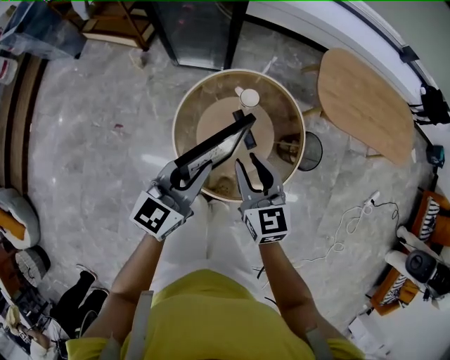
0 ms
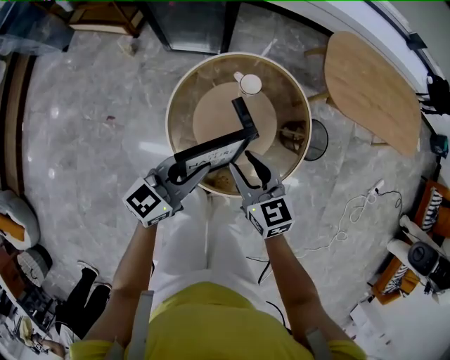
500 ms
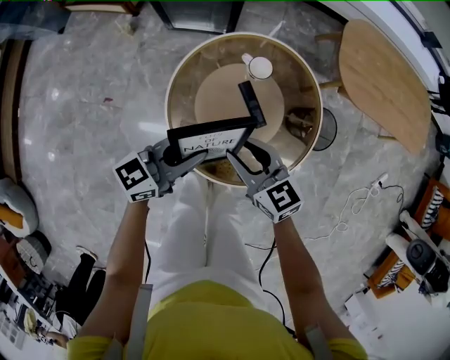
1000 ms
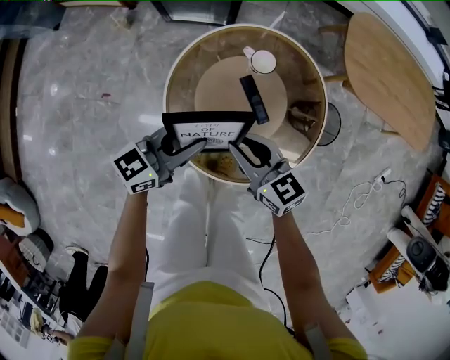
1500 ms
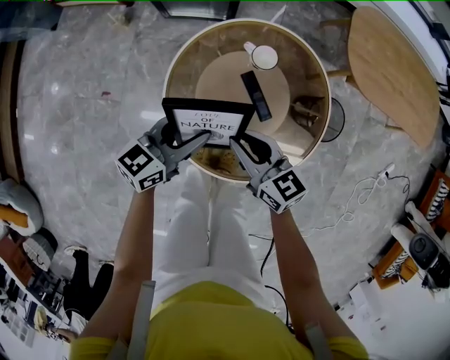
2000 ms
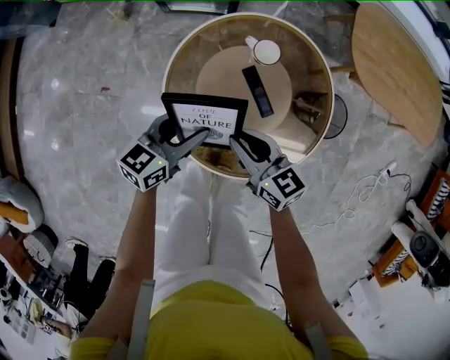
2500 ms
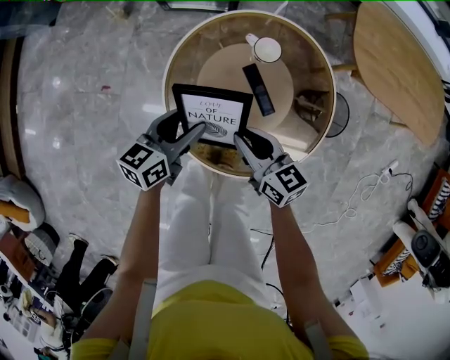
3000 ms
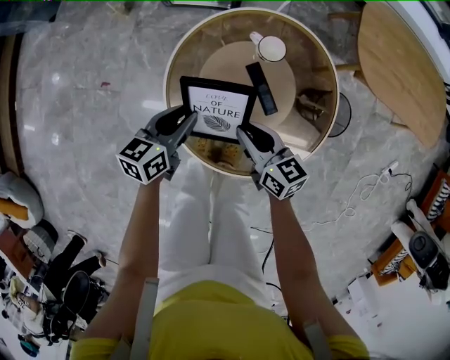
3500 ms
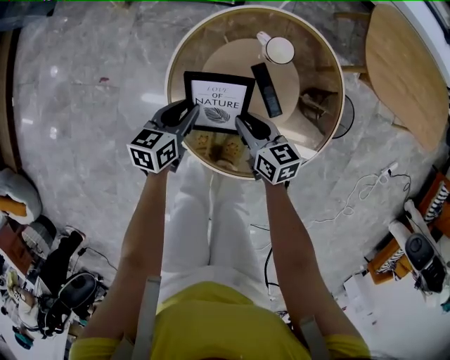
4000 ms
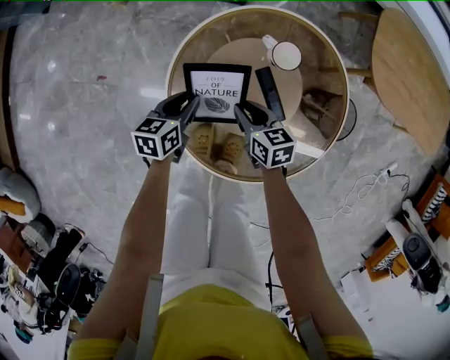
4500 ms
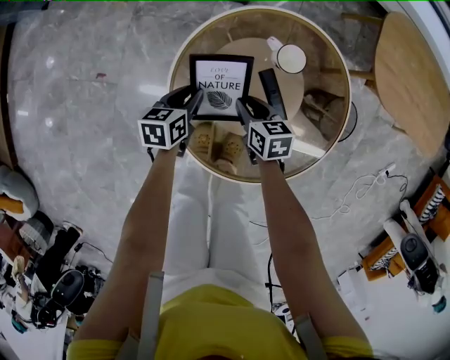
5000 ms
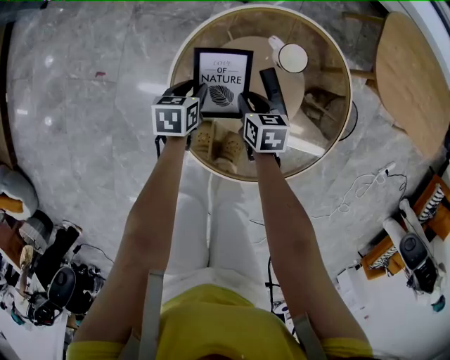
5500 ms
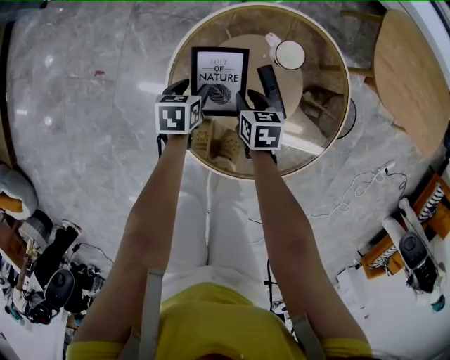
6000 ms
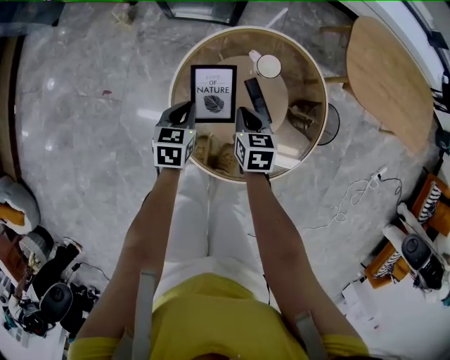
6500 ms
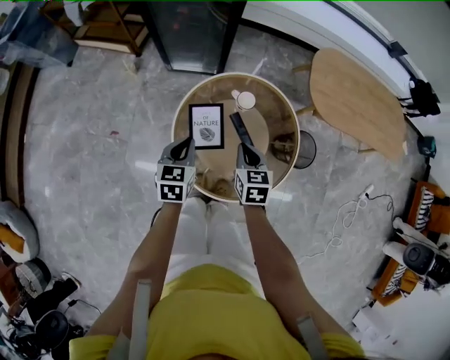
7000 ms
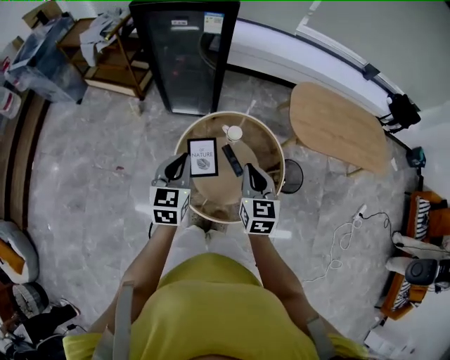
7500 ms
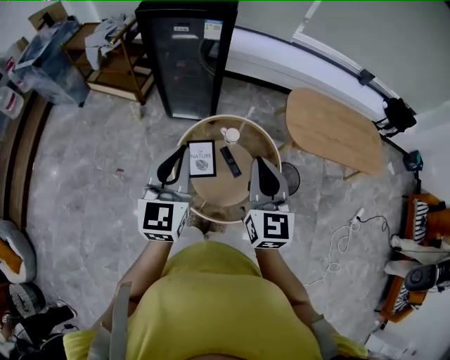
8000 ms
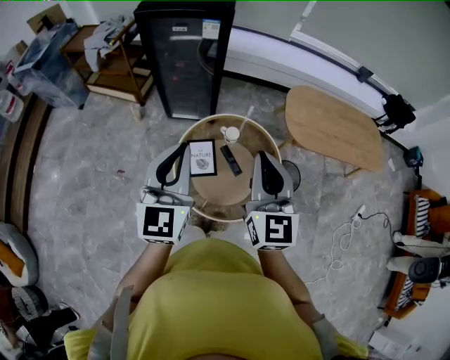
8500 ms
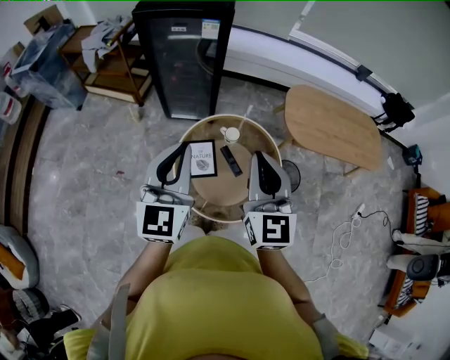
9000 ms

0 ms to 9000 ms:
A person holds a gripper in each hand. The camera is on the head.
0 ms to 2000 ms: Both grippers move downward, approximately 20 cm. The left gripper swivels some 20 degrees, and opens. The right gripper rotates about 20 degrees.
2000 ms to 4500 ms: Both grippers travel together downward, approximately 20 cm. The left gripper rotates approximately 30 degrees, while the right gripper turns by about 20 degrees.
4500 ms to 7000 ms: Both grippers travel together upward, roughly 20 cm. The left gripper changes its angle by about 20 degrees, and closes up. The right gripper swivels about 30 degrees.
7000 ms to 9000 ms: The grippers both shift upward by roughly 35 cm. The right gripper tilts its fingers roughly 40 degrees upward; the left gripper tilts its fingers some 40 degrees upward.

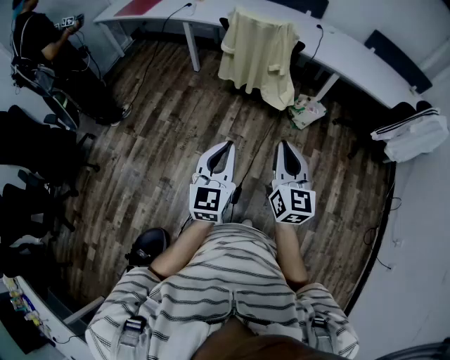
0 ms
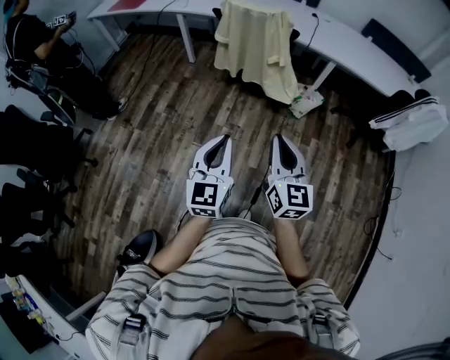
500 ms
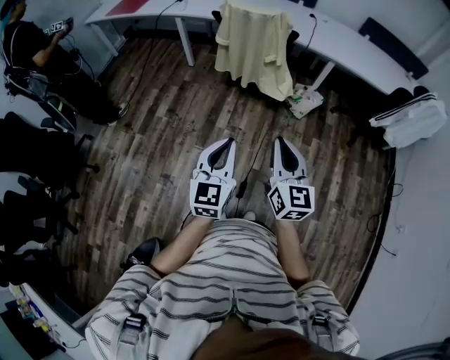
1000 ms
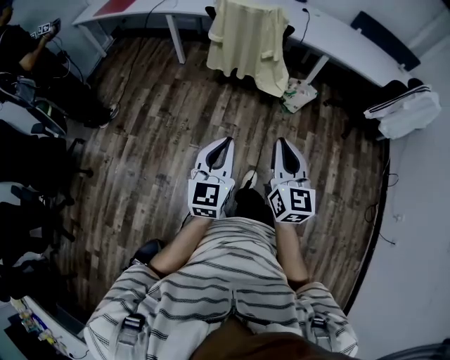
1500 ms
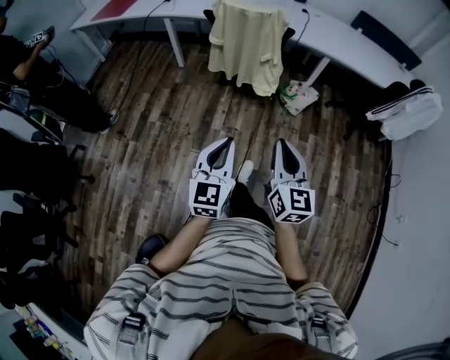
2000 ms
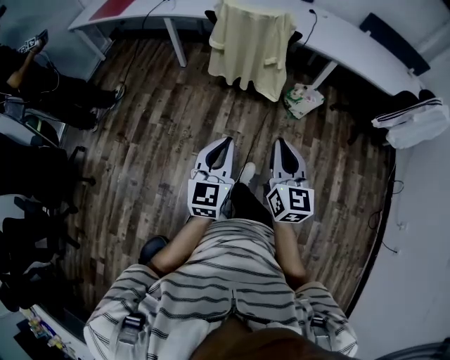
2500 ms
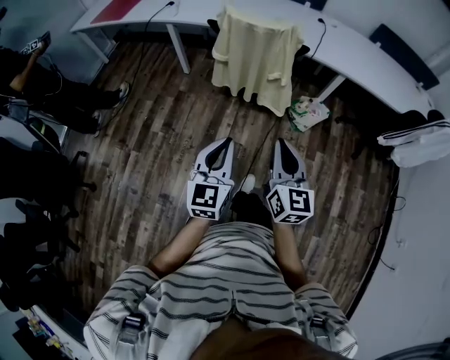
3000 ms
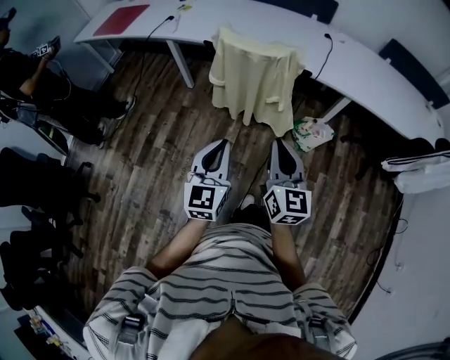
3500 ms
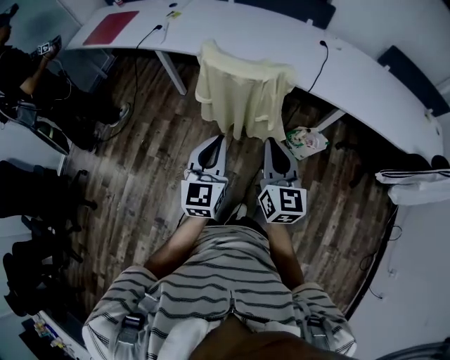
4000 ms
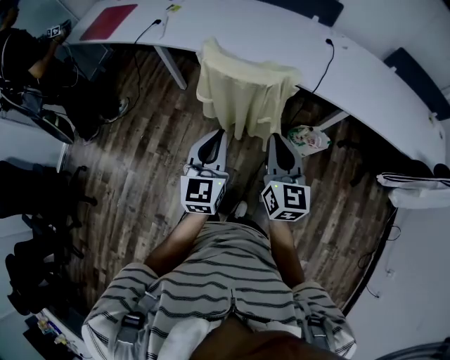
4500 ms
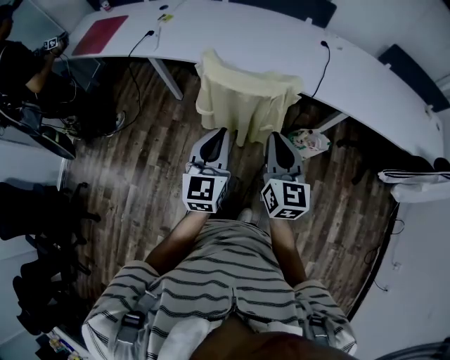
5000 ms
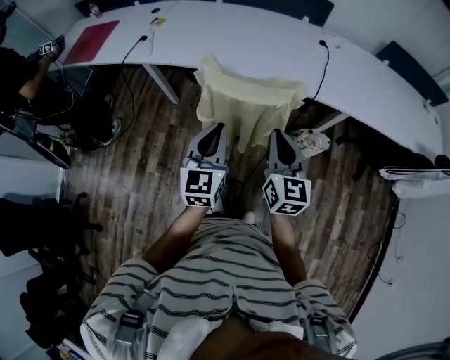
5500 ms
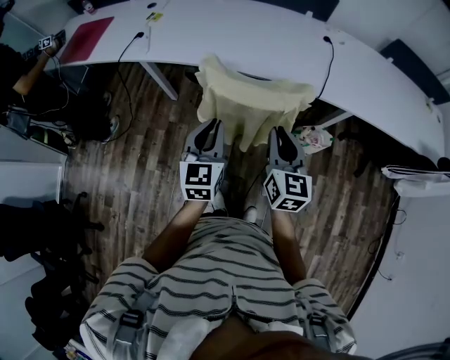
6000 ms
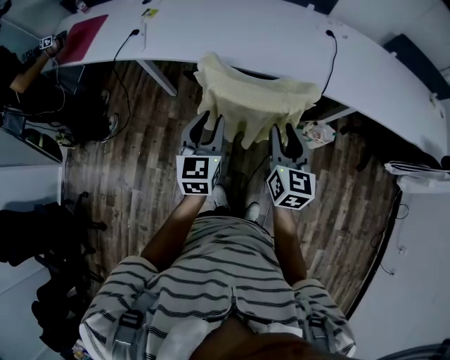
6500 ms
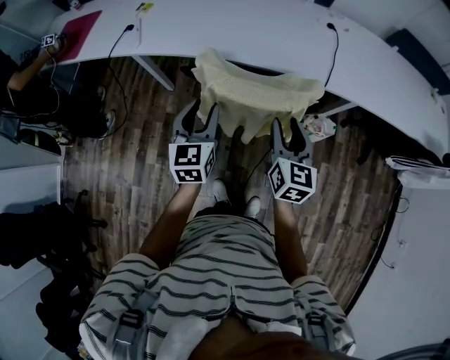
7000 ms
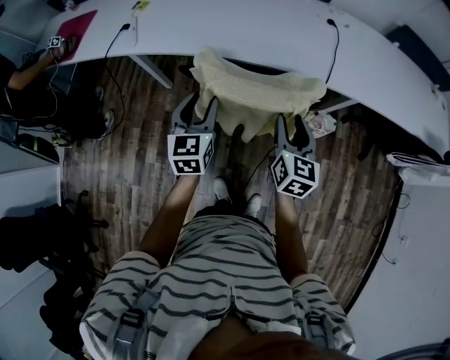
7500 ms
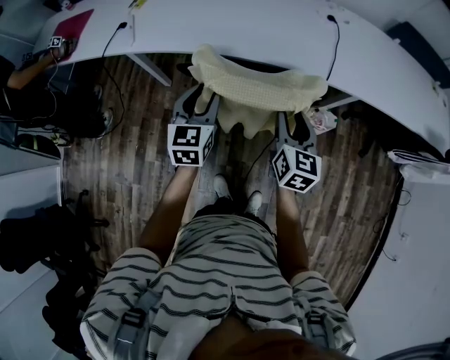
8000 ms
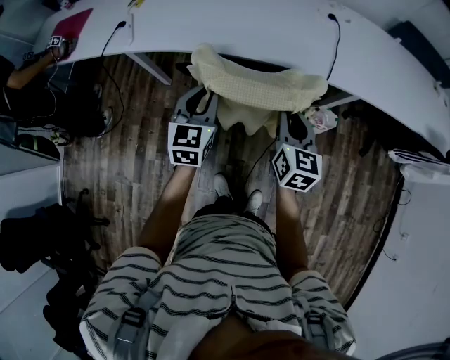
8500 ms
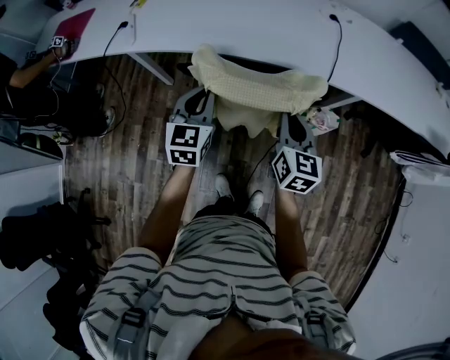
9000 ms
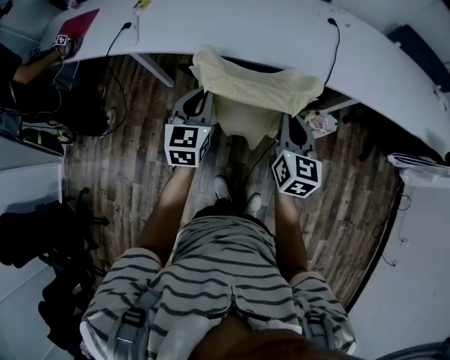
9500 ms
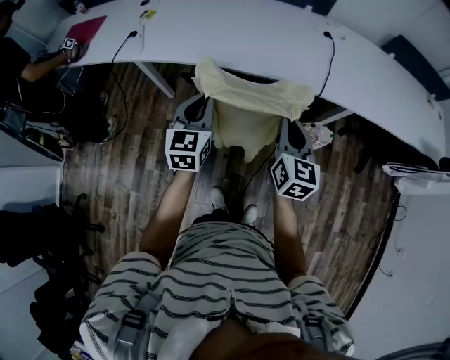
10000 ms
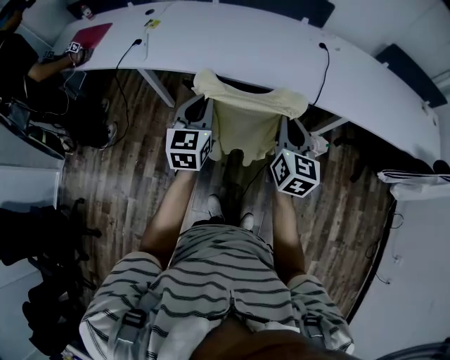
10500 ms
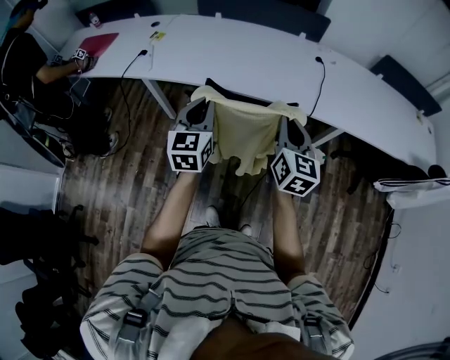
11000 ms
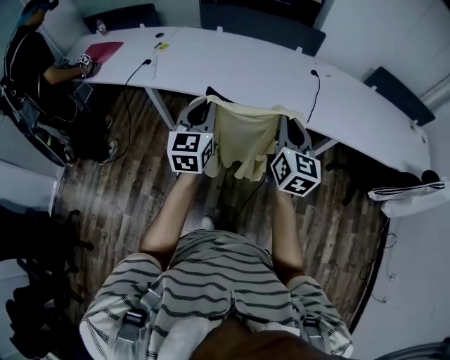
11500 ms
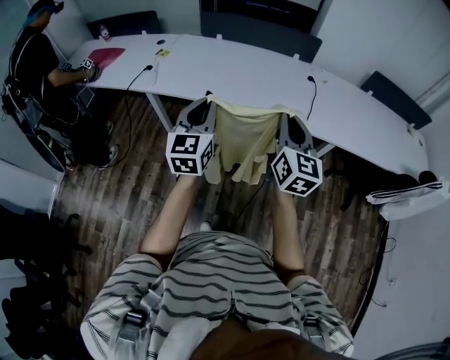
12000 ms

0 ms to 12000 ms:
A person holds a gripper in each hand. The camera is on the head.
0 ms to 2000 ms: The left gripper ends up some 5 cm from where it was.
2000 ms to 4000 ms: The two grippers travel together, forward, about 40 cm.
4000 ms to 6000 ms: The right gripper shifts some 15 cm forward. Meanwhile the left gripper is displaced forward and to the left by approximately 20 cm.
6000 ms to 8000 ms: The right gripper is displaced forward and downward by some 10 cm, and opens up, while the left gripper moves forward, about 10 cm, and opens its fingers.
8000 ms to 10000 ms: The left gripper closes its fingers, while the right gripper changes place by roughly 5 cm, and closes.
10000 ms to 12000 ms: Both grippers move upward, about 15 cm.

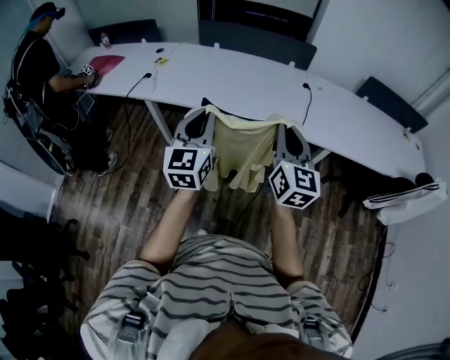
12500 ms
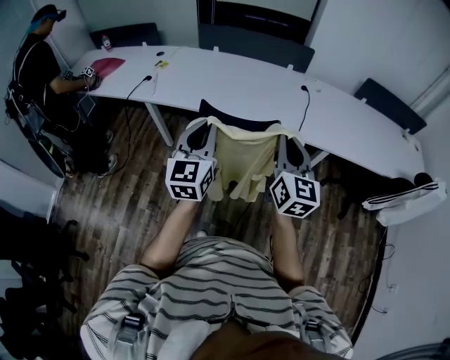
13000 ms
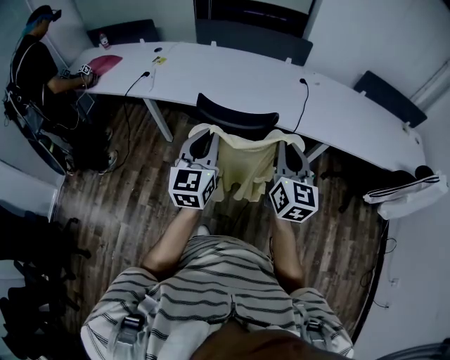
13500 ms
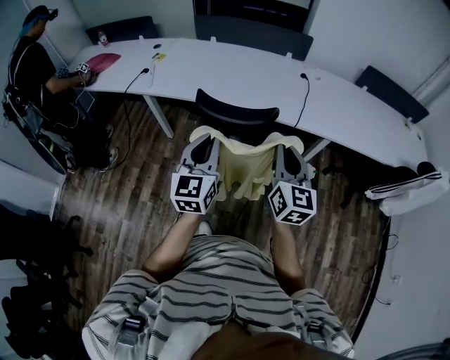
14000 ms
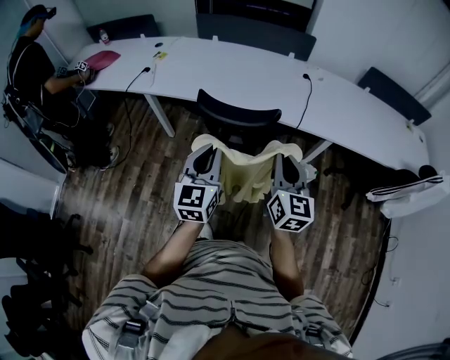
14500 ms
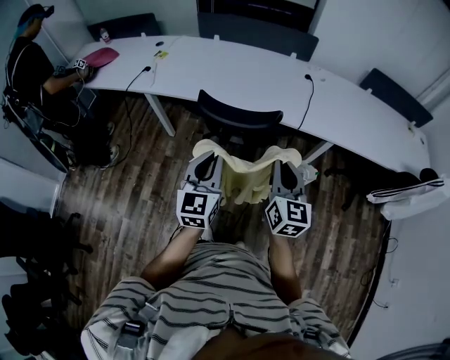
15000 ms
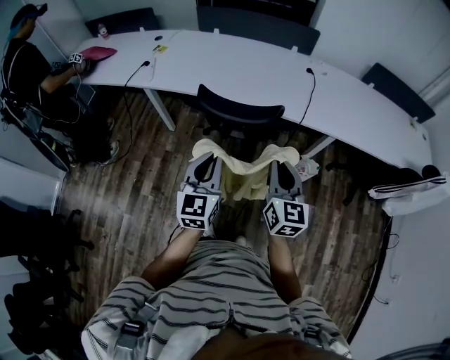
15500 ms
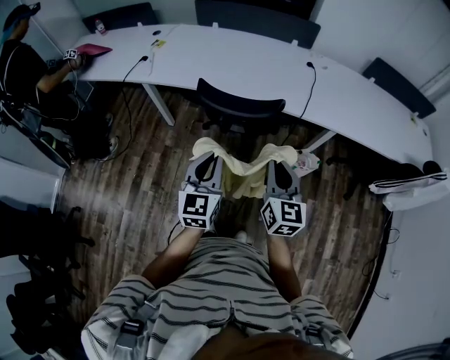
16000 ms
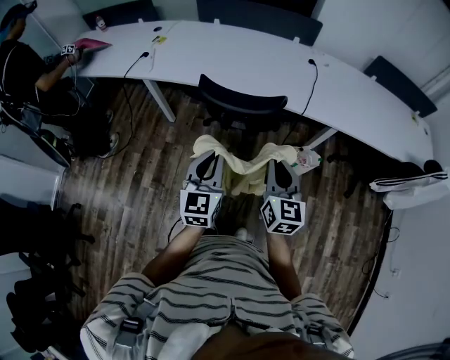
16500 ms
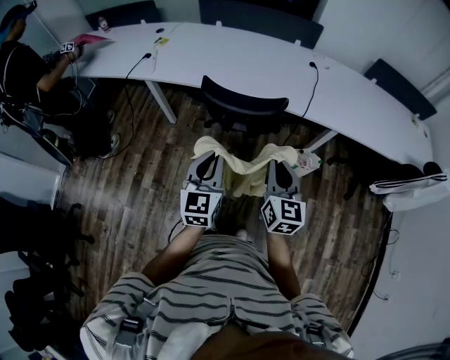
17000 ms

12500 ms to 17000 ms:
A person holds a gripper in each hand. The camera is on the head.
12500 ms to 14500 ms: The left gripper shifts roughly 10 cm backward, downward and to the right; the right gripper goes about 10 cm downward and backward.
14500 ms to 17000 ms: Both grippers travel together downward, about 5 cm.

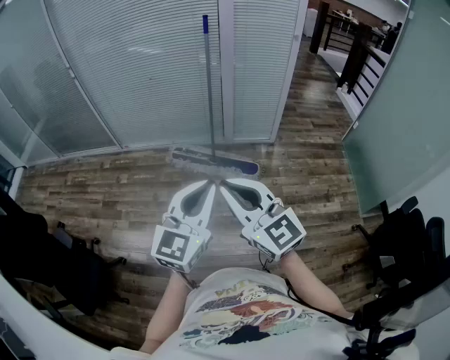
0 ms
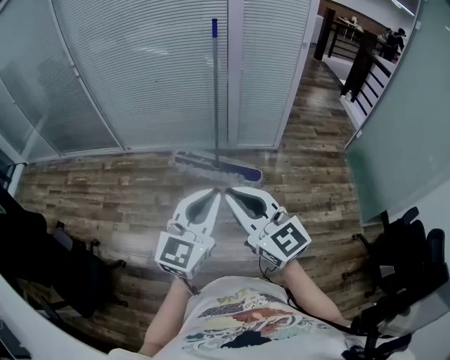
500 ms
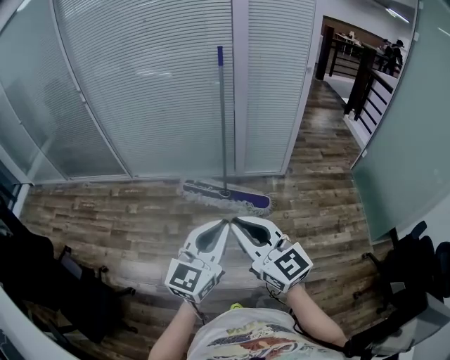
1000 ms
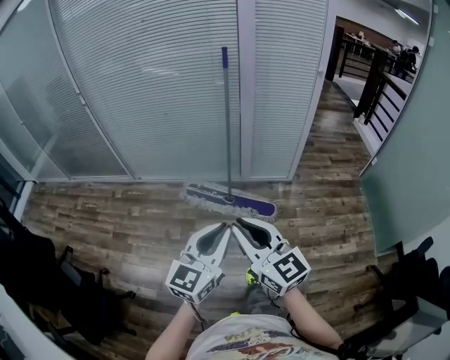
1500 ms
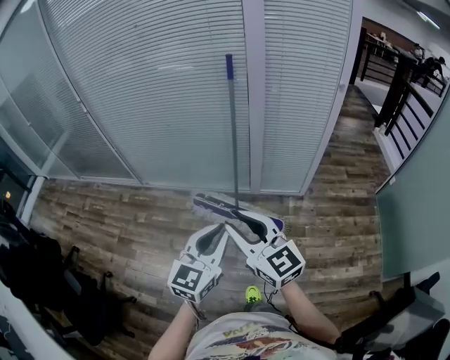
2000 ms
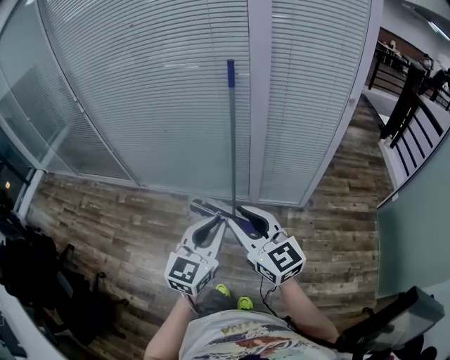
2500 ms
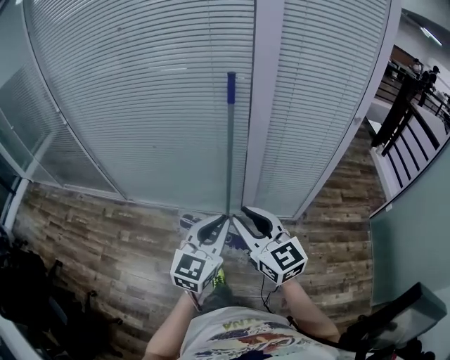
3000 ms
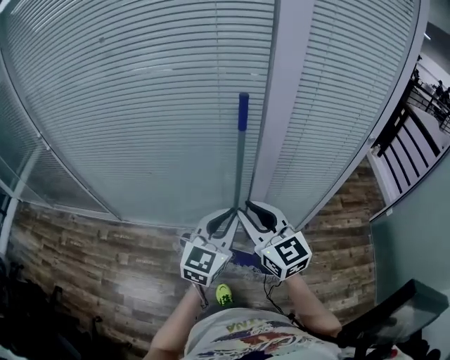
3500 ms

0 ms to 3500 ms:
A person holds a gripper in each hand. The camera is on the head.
0 ms to 2000 ms: The grippers both shift forward by some 35 cm. The right gripper opens its fingers.
2000 ms to 3500 ms: The two grippers travel together, forward, approximately 40 cm.
